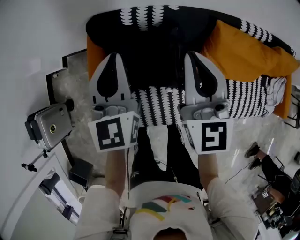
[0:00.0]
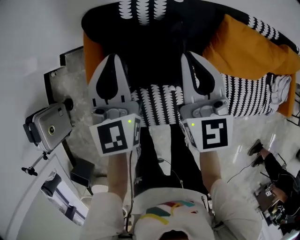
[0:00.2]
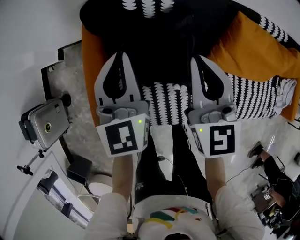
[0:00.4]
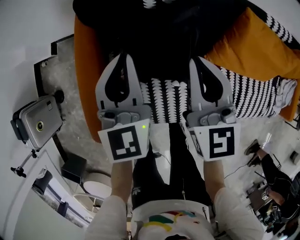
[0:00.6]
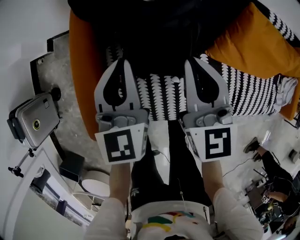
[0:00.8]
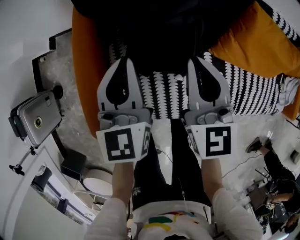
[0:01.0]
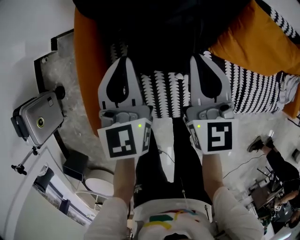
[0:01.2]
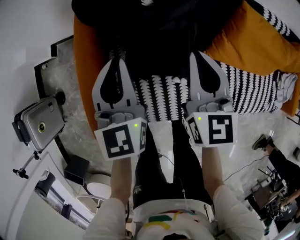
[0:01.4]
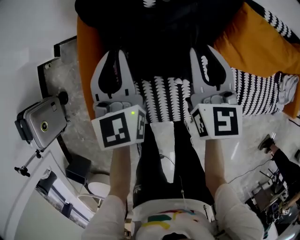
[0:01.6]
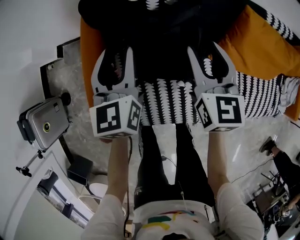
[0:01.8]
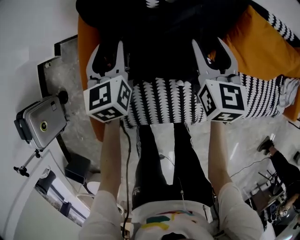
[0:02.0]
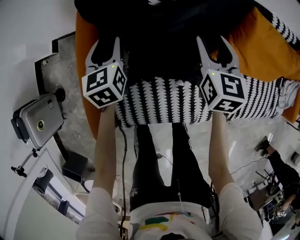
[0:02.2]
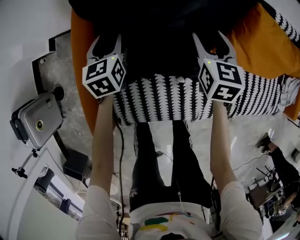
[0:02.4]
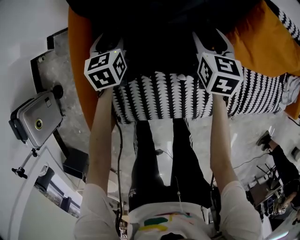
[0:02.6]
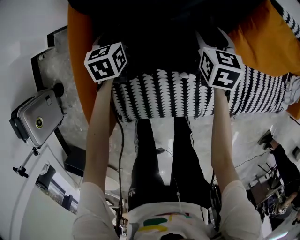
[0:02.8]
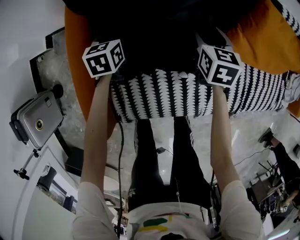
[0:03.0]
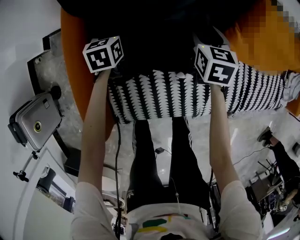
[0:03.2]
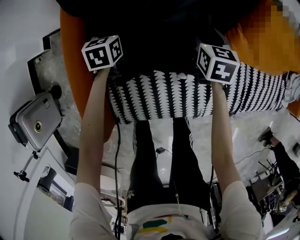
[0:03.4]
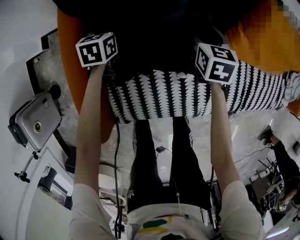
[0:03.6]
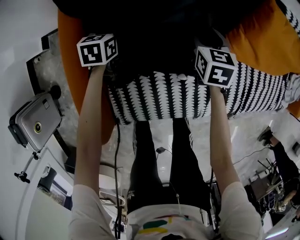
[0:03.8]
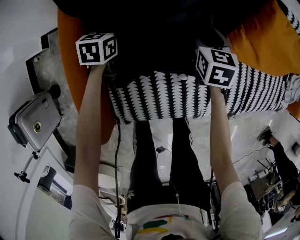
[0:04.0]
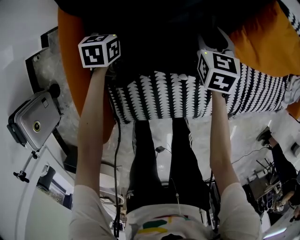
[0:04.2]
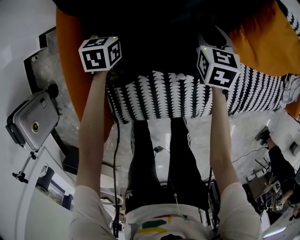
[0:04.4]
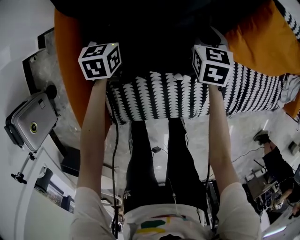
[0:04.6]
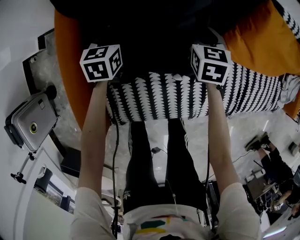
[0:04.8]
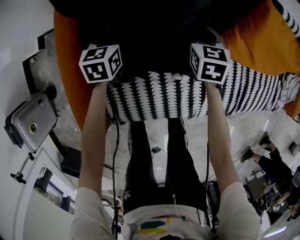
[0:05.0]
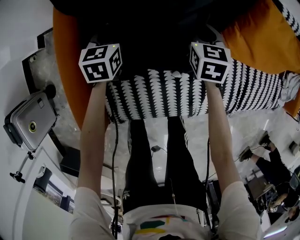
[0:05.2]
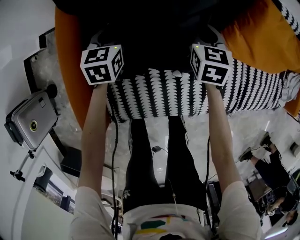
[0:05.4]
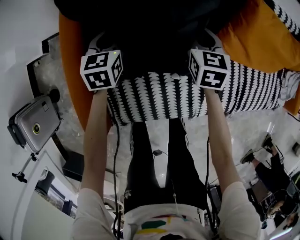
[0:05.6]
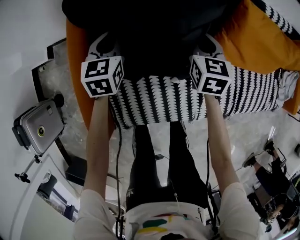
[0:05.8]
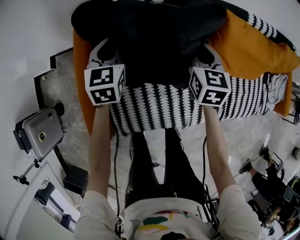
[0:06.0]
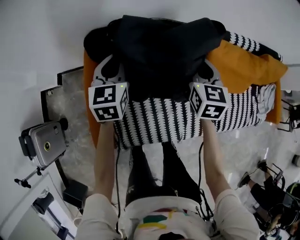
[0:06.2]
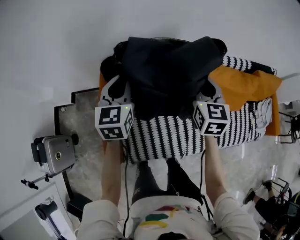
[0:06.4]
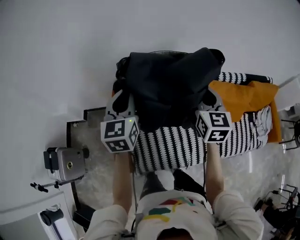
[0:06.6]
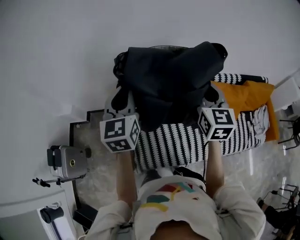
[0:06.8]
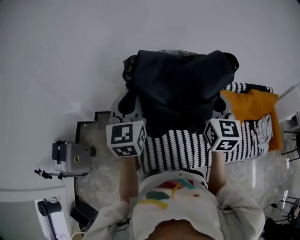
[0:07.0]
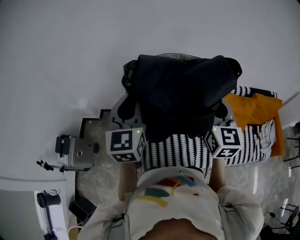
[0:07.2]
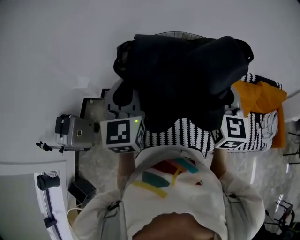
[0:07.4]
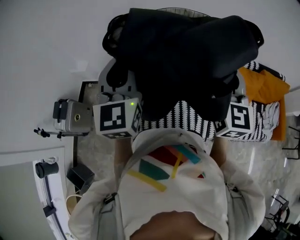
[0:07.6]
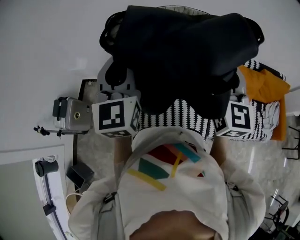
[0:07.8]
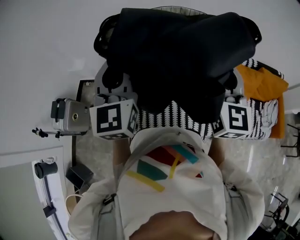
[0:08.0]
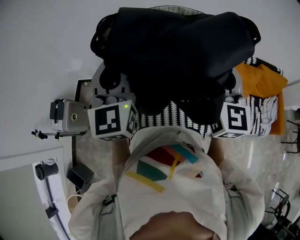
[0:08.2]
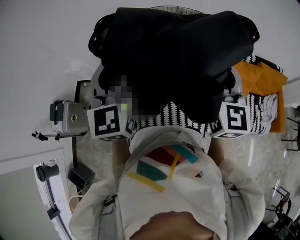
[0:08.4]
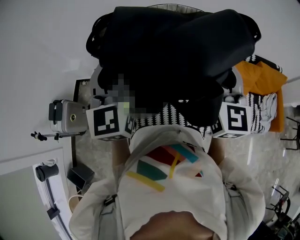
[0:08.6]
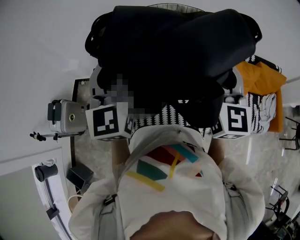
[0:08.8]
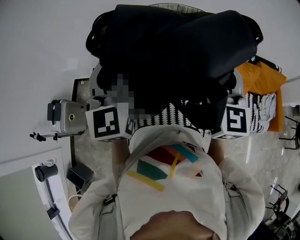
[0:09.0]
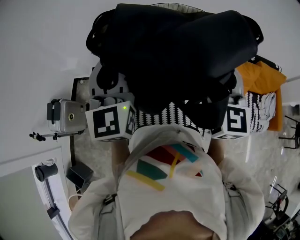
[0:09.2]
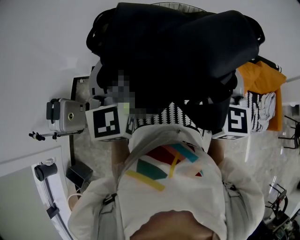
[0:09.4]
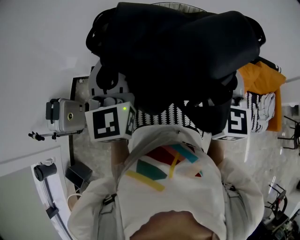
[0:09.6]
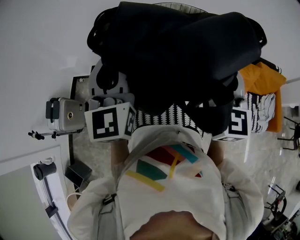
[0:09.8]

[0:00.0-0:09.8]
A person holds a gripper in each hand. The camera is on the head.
0:00.0 to 0:01.4: The two grippers go roughly 15 cm downward.
0:01.4 to 0:02.8: The right gripper travels downward and to the right by approximately 20 cm, rotates approximately 20 degrees, and opens up. Meanwhile the left gripper travels downward by approximately 25 cm, changes its angle by some 30 degrees, and opens its fingers.
0:02.8 to 0:04.2: The left gripper changes place by roughly 5 cm, and closes its fingers.
0:04.2 to 0:05.6: The left gripper moves upward, roughly 10 cm; the right gripper closes its fingers.
0:05.6 to 0:07.0: The grippers both shift upward by roughly 60 cm. The right gripper tilts its fingers approximately 30 degrees upward, while the left gripper tips its fingers upward by roughly 30 degrees.
0:07.0 to 0:08.4: The two grippers go about 5 cm backward.
0:08.4 to 0:09.8: Both grippers stay put.

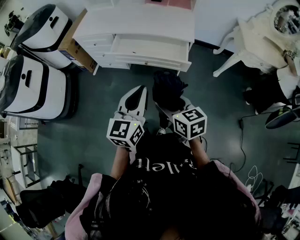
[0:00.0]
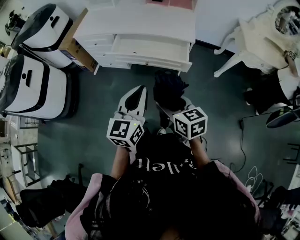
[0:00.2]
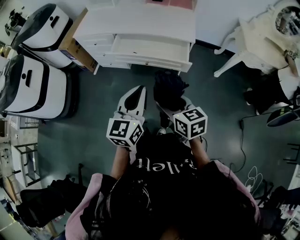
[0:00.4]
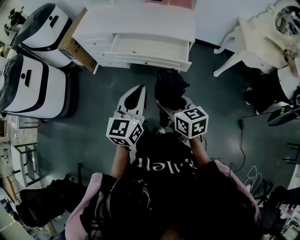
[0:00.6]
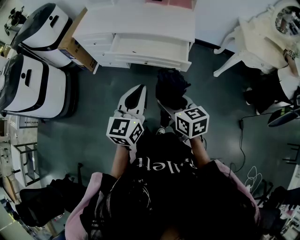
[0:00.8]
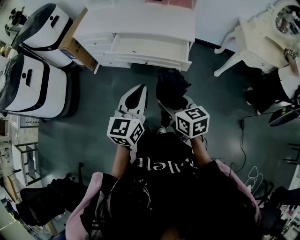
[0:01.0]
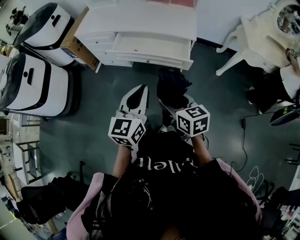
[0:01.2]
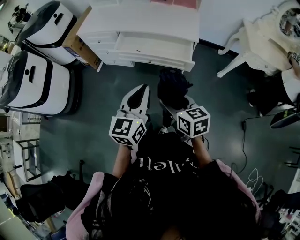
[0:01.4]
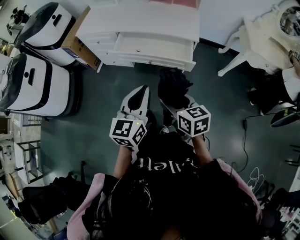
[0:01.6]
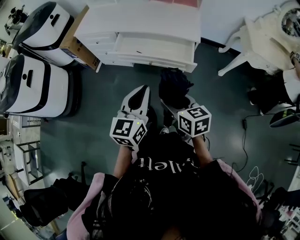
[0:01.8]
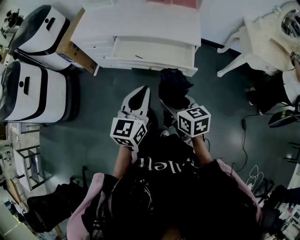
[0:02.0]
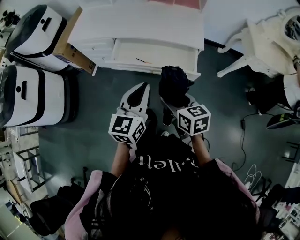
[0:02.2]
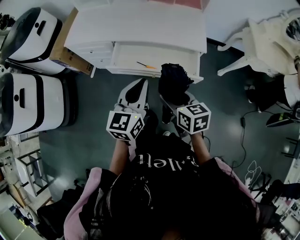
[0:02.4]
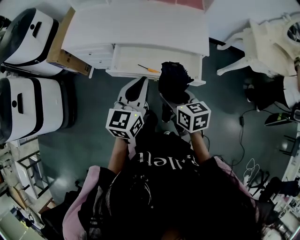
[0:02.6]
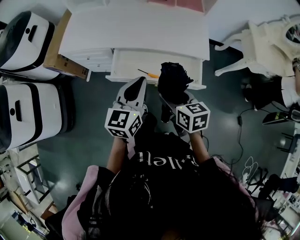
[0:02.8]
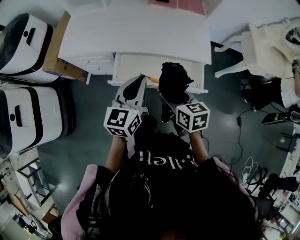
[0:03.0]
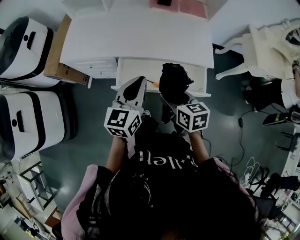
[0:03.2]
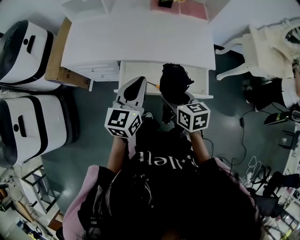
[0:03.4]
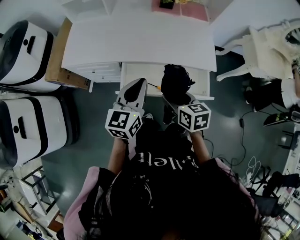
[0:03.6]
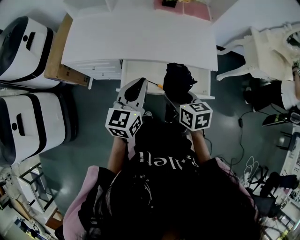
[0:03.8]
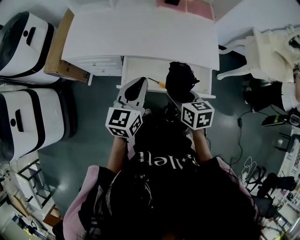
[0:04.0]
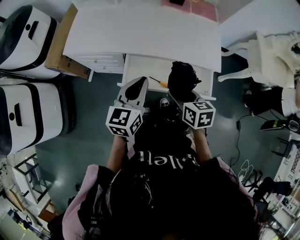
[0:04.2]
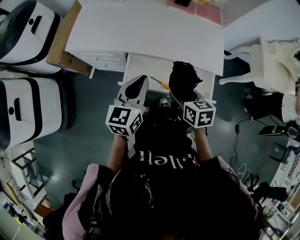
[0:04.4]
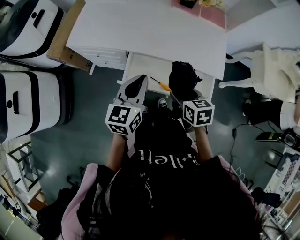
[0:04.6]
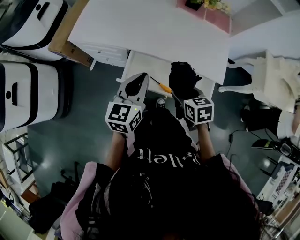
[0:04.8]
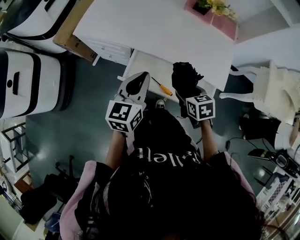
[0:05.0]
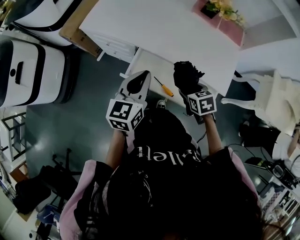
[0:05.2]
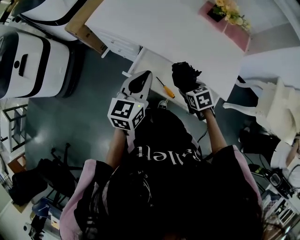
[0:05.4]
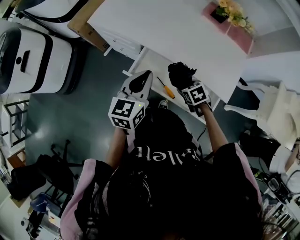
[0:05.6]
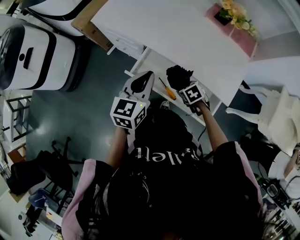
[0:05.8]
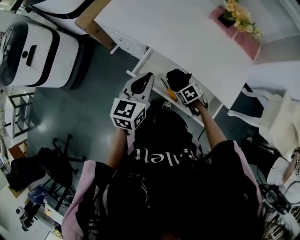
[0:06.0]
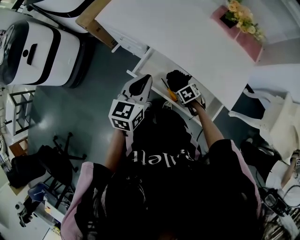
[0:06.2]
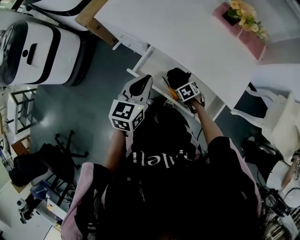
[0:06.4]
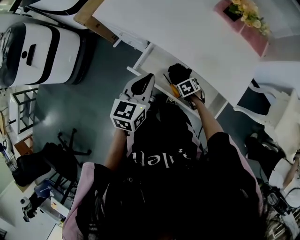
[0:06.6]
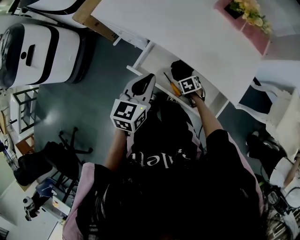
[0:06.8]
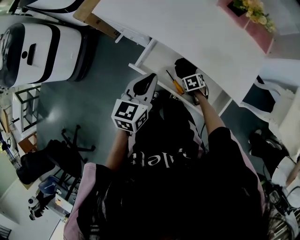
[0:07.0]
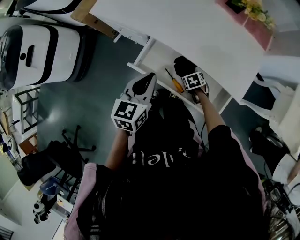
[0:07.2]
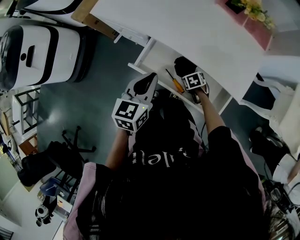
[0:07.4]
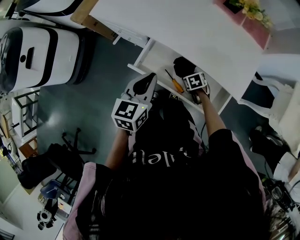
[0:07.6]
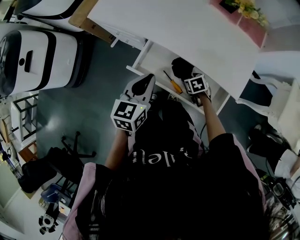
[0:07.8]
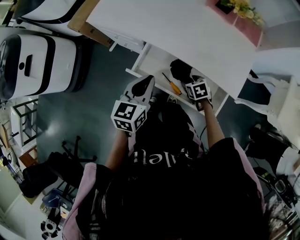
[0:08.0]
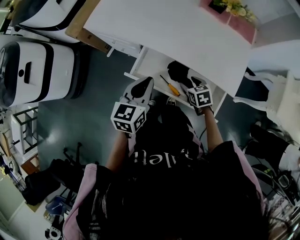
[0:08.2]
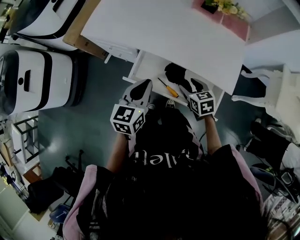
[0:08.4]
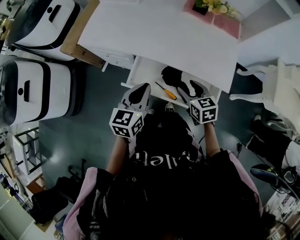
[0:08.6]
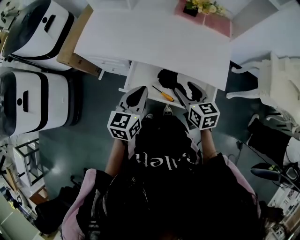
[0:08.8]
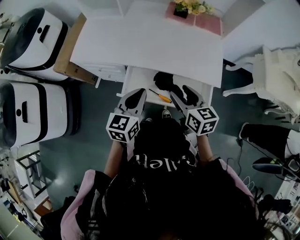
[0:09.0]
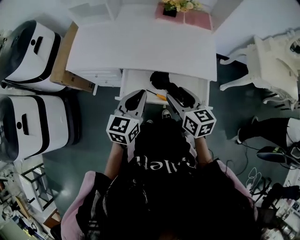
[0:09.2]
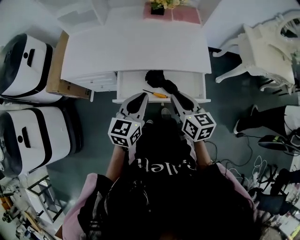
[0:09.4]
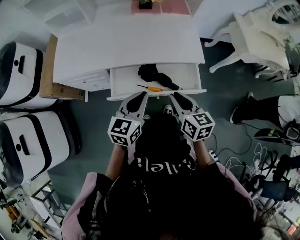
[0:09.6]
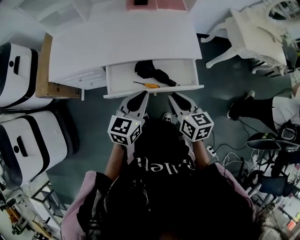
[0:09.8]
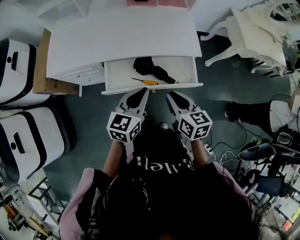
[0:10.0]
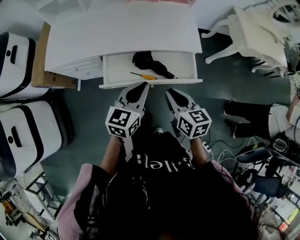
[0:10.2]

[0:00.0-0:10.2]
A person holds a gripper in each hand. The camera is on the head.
0:00.0 to 0:01.4: The grippers make only small movements.
0:01.4 to 0:03.0: The grippers both shift forward by approximately 35 cm.
0:03.0 to 0:04.4: The right gripper travels forward by roughly 5 cm. Meanwhile the left gripper shifts about 5 cm to the left.
0:04.4 to 0:05.8: The right gripper is displaced downward by roughly 15 cm, and swivels approximately 50 degrees.
0:05.8 to 0:07.2: The right gripper goes approximately 10 cm downward.
0:07.2 to 0:08.8: The right gripper heads upward, covering roughly 30 cm, and tilts its fingers roughly 40 degrees upward.
0:08.8 to 0:10.2: The left gripper shifts approximately 10 cm to the right and backward, and changes its angle by some 20 degrees. Meanwhile the right gripper travels backward by roughly 15 cm, changes its angle by about 20 degrees, and closes.

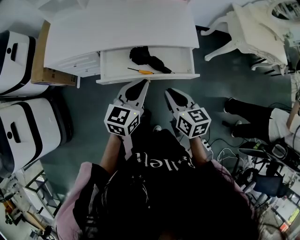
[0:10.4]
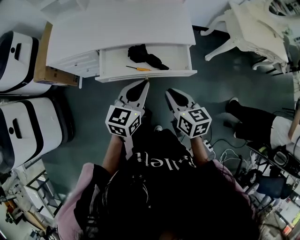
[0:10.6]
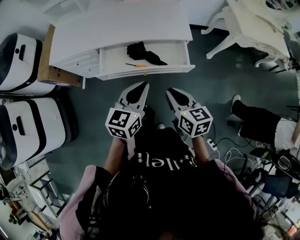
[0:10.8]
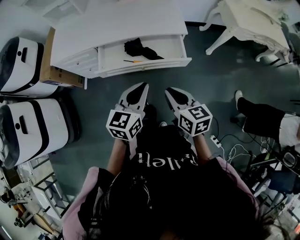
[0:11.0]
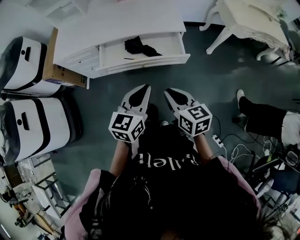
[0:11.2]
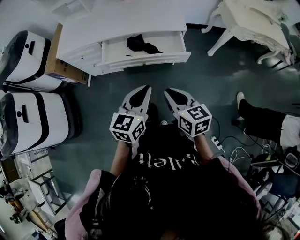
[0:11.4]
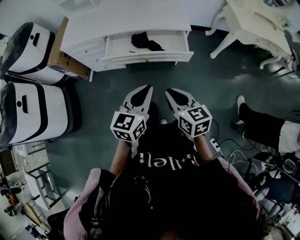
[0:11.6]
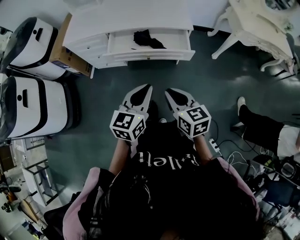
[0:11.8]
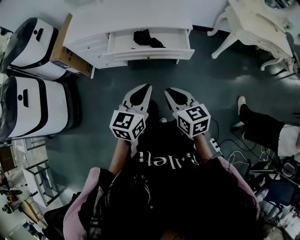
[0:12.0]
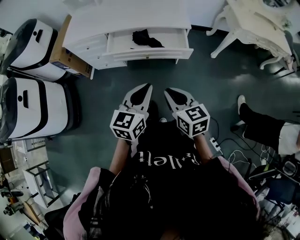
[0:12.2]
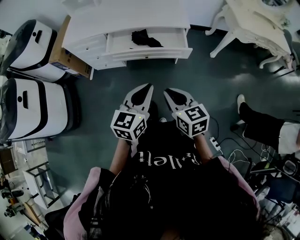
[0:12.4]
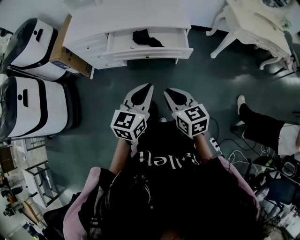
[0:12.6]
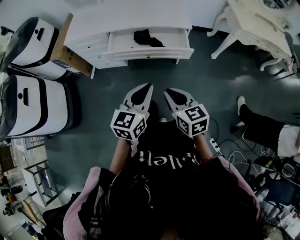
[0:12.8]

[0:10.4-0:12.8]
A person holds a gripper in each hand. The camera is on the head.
0:10.4 to 0:11.6: Both grippers travel together backward, roughly 25 cm.
0:11.6 to 0:12.8: The grippers make only small movements.

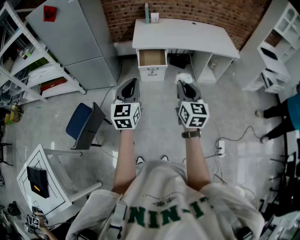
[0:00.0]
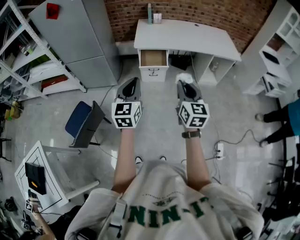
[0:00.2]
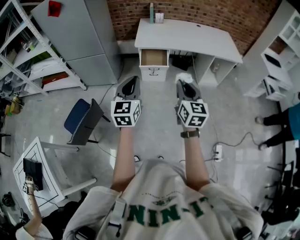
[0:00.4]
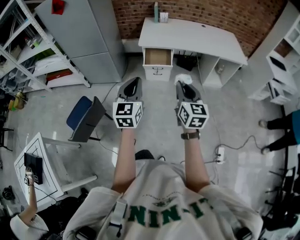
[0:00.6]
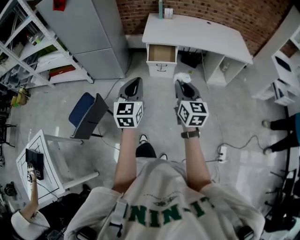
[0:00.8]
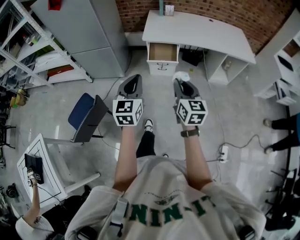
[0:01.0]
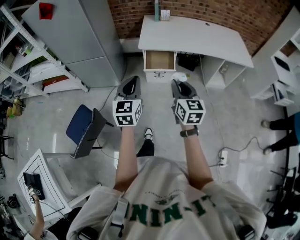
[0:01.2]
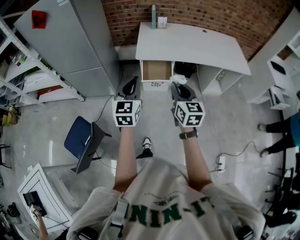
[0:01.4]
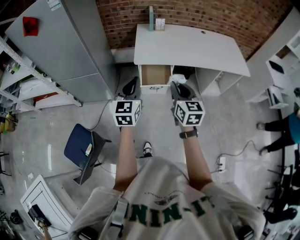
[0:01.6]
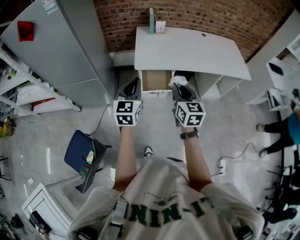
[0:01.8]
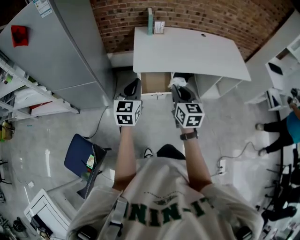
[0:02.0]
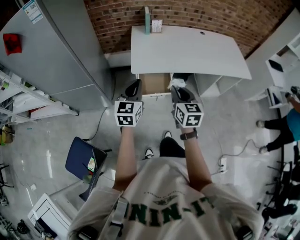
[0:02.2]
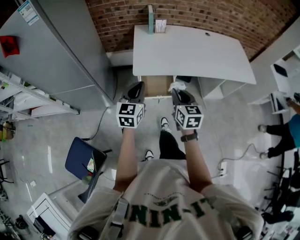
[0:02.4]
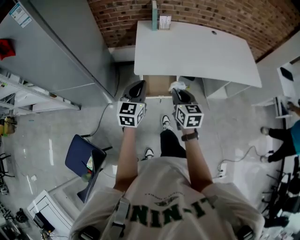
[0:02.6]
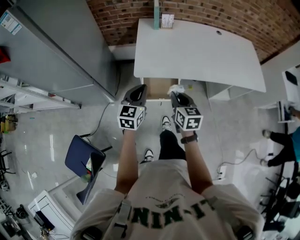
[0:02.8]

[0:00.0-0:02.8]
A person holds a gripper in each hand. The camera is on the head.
0:00.0 to 0:01.4: Both grippers move forward, about 20 cm.
0:01.4 to 0:02.8: The two grippers go some 30 cm forward and downward.
